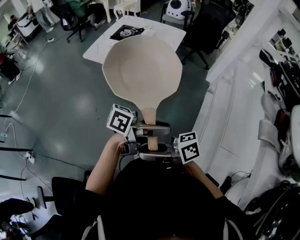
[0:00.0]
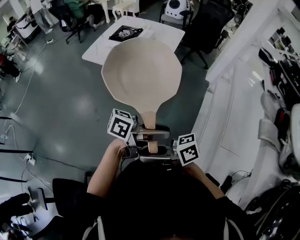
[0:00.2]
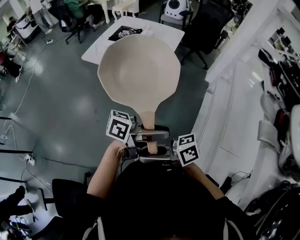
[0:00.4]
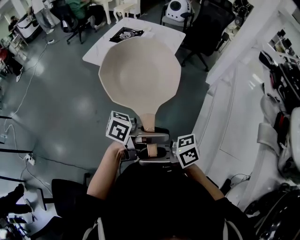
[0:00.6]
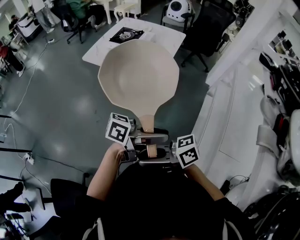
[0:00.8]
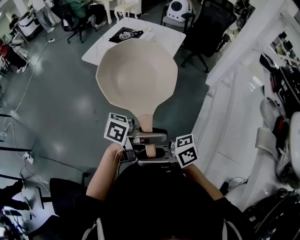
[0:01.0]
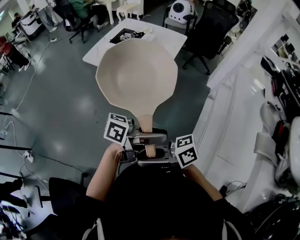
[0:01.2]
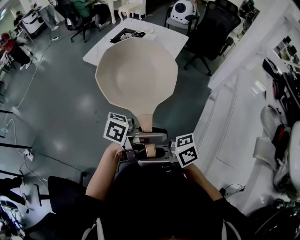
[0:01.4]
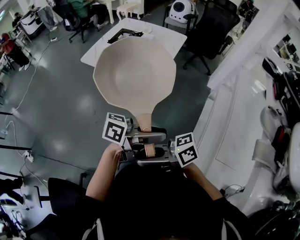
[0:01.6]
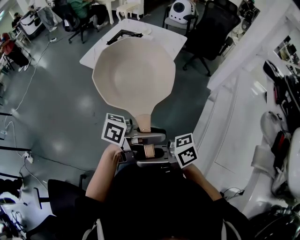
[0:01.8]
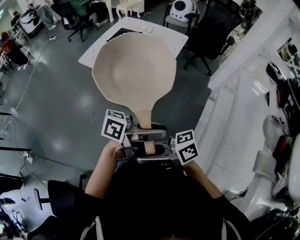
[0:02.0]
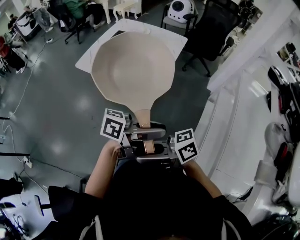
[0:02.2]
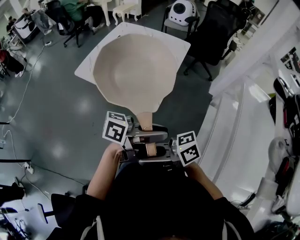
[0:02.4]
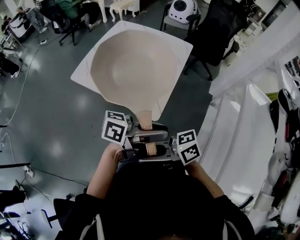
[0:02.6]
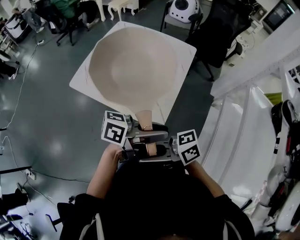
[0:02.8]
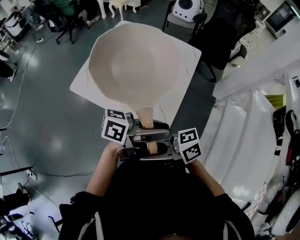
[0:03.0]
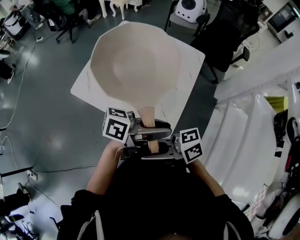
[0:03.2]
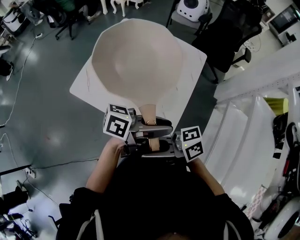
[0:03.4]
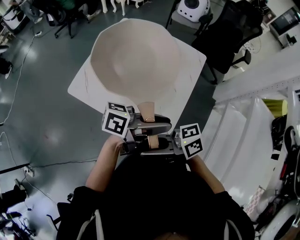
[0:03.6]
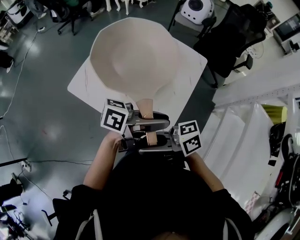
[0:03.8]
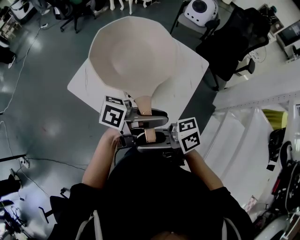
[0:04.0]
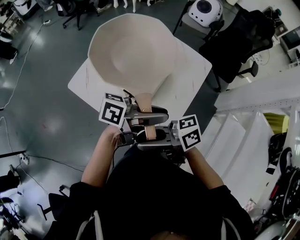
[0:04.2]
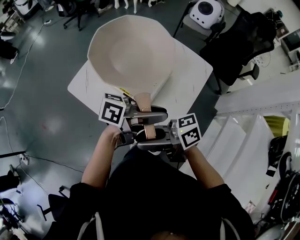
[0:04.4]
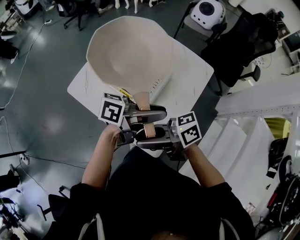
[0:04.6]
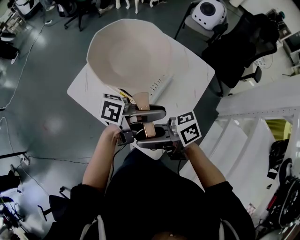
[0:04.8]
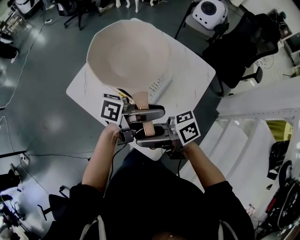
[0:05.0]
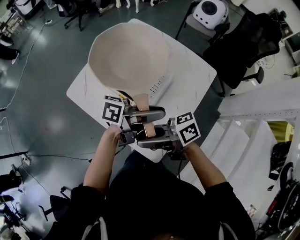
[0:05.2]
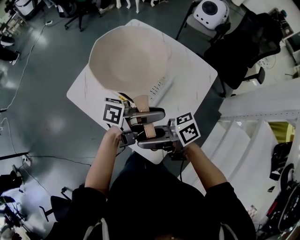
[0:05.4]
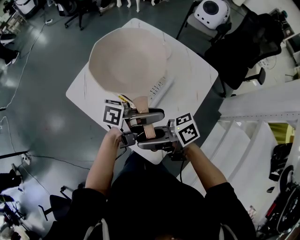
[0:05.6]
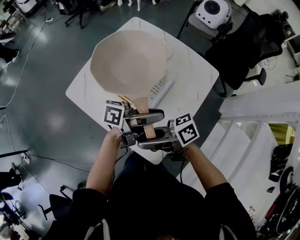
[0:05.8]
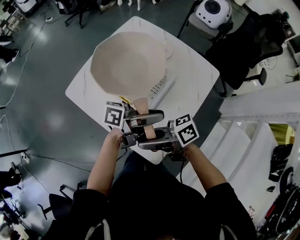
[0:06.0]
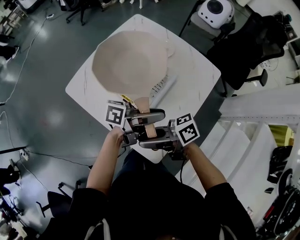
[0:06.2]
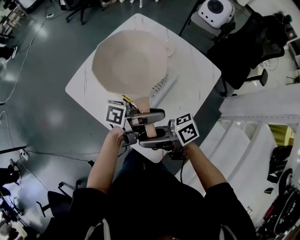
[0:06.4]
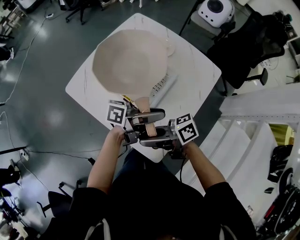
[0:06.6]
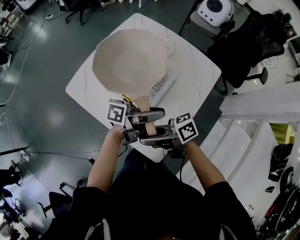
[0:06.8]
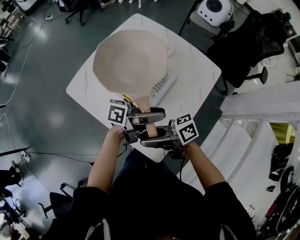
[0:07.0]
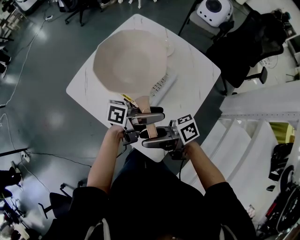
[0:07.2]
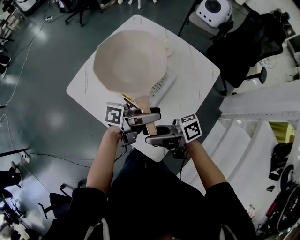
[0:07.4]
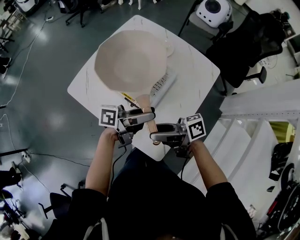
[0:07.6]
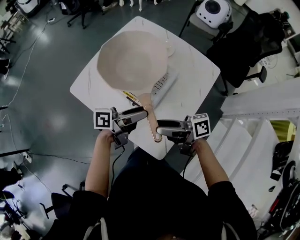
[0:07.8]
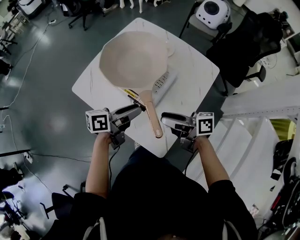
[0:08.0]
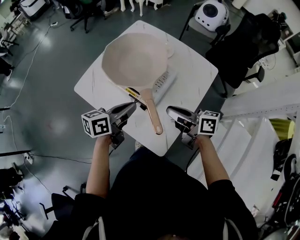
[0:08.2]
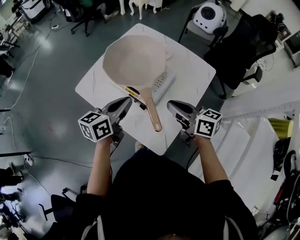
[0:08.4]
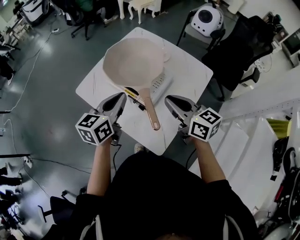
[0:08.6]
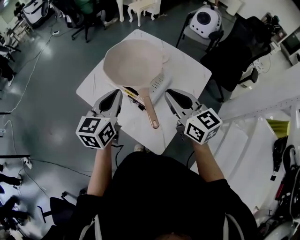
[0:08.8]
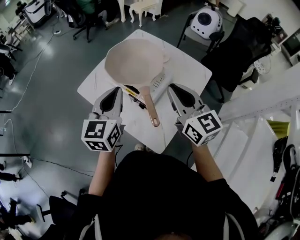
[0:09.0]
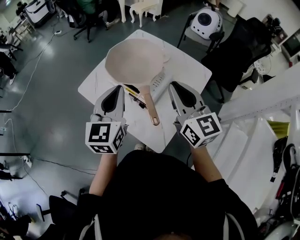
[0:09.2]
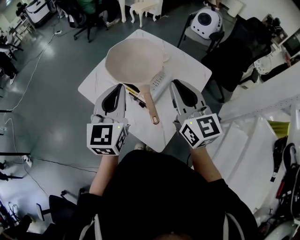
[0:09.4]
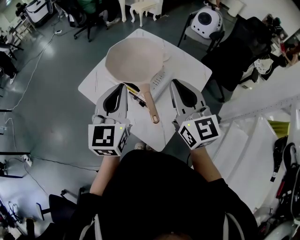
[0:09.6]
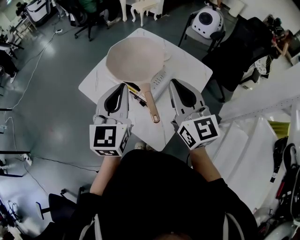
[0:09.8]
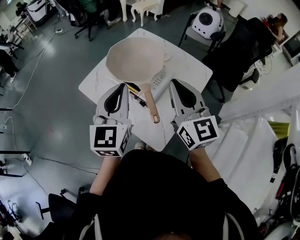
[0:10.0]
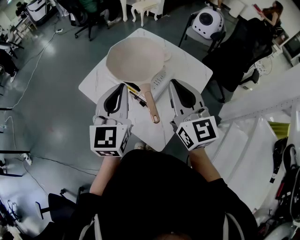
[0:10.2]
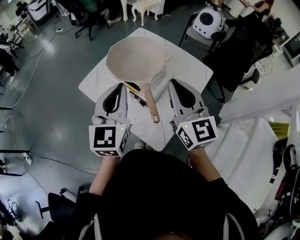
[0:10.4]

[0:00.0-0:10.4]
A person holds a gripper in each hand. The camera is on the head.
0:00.0 to 0:01.4: There are only small adjustments of the grippers.
0:01.4 to 0:03.0: The right gripper shifts by approximately 35 cm. The left gripper shifts by roughly 35 cm.
0:03.0 to 0:04.4: The left gripper moves some 15 cm; the right gripper changes place by about 15 cm.
0:04.4 to 0:06.0: The two grippers go about 5 cm downward.
0:06.0 to 0:07.4: The right gripper opens. The left gripper opens.
0:07.4 to 0:09.0: The left gripper moves some 20 cm, swivels some 90 degrees, and closes its fingers. Meanwhile the right gripper moves upward, approximately 15 cm, rotates about 90 degrees, and closes.
0:09.0 to 0:10.4: The grippers make only small movements.

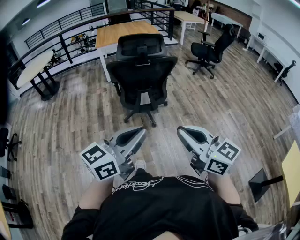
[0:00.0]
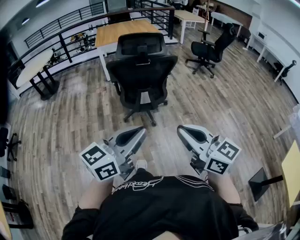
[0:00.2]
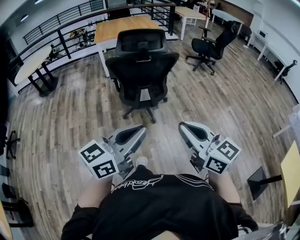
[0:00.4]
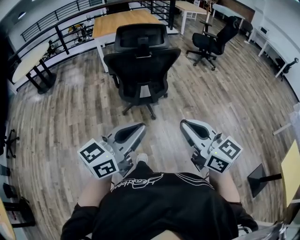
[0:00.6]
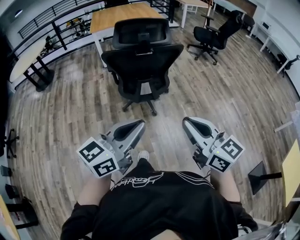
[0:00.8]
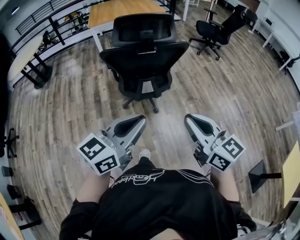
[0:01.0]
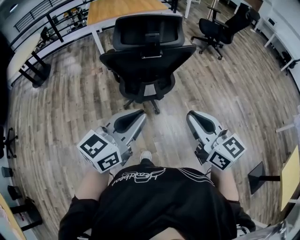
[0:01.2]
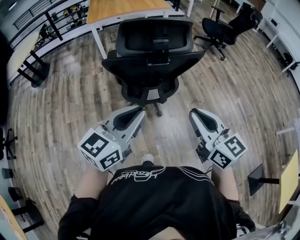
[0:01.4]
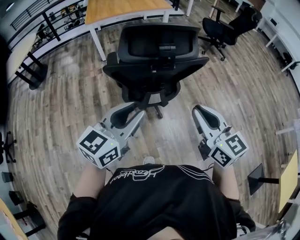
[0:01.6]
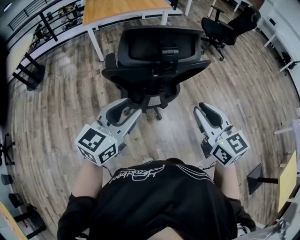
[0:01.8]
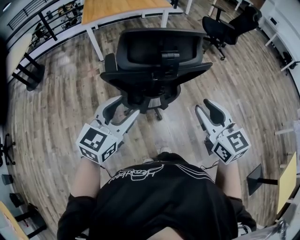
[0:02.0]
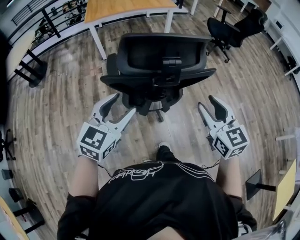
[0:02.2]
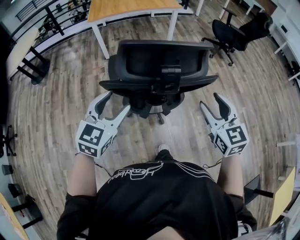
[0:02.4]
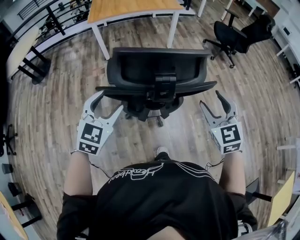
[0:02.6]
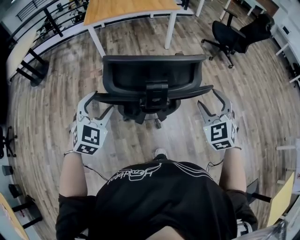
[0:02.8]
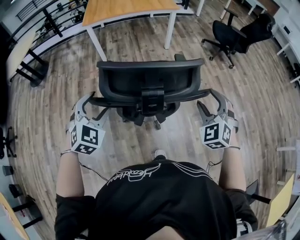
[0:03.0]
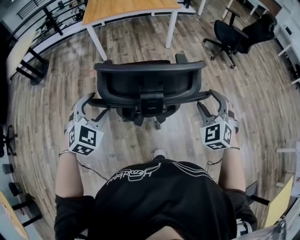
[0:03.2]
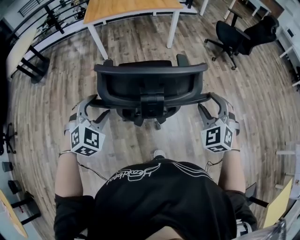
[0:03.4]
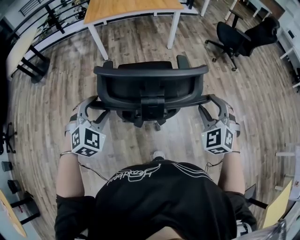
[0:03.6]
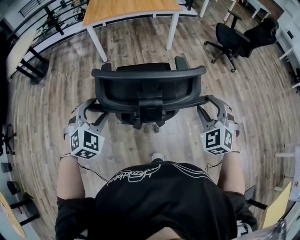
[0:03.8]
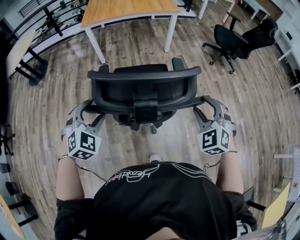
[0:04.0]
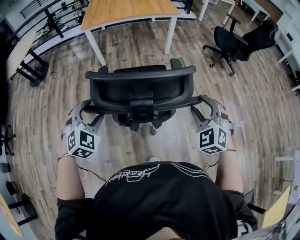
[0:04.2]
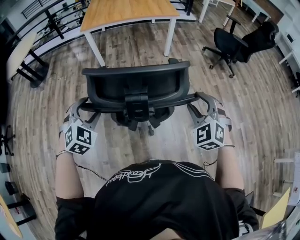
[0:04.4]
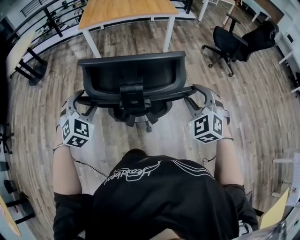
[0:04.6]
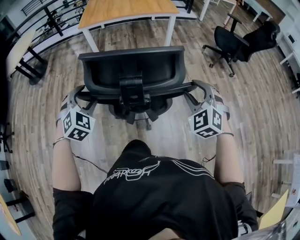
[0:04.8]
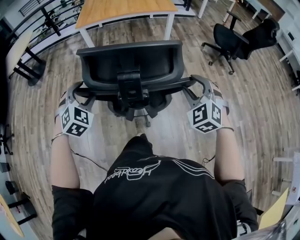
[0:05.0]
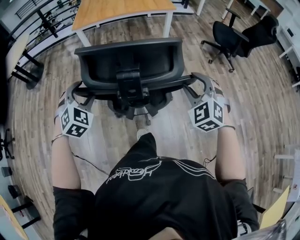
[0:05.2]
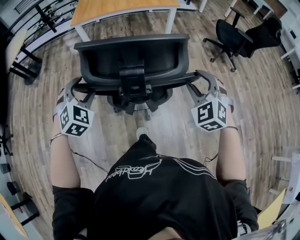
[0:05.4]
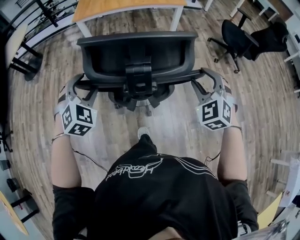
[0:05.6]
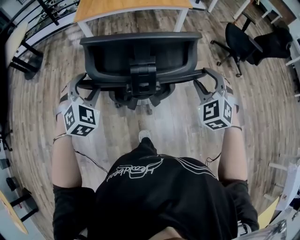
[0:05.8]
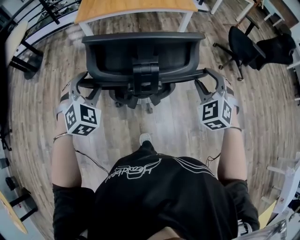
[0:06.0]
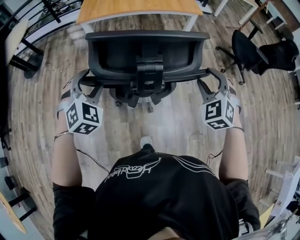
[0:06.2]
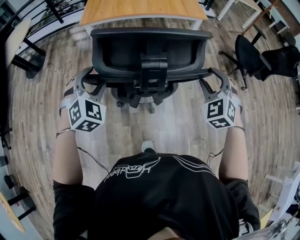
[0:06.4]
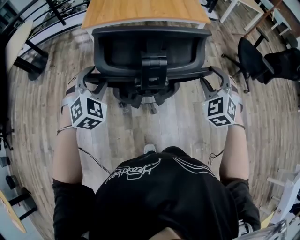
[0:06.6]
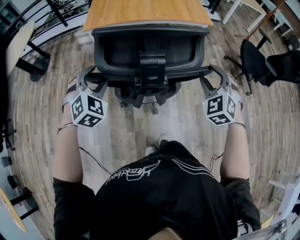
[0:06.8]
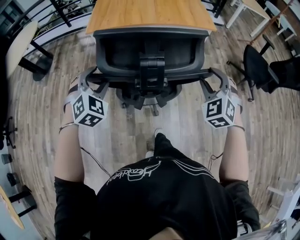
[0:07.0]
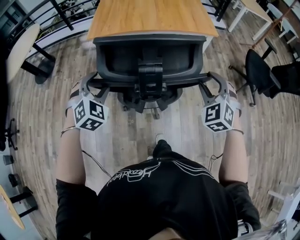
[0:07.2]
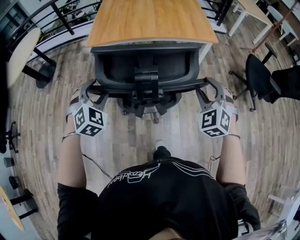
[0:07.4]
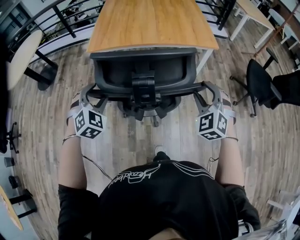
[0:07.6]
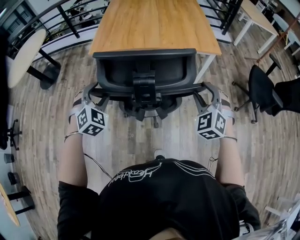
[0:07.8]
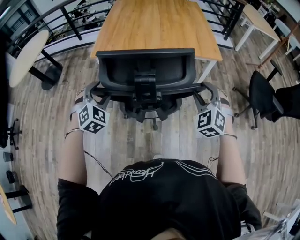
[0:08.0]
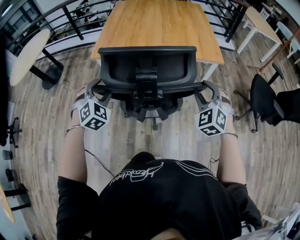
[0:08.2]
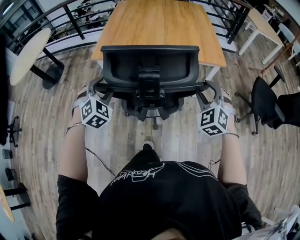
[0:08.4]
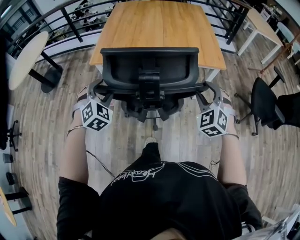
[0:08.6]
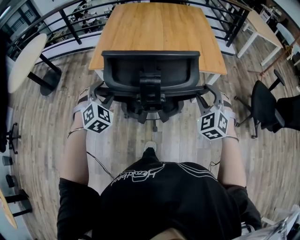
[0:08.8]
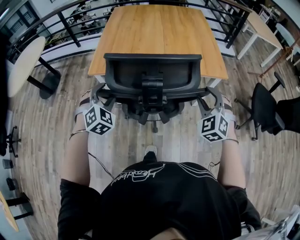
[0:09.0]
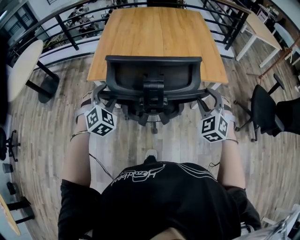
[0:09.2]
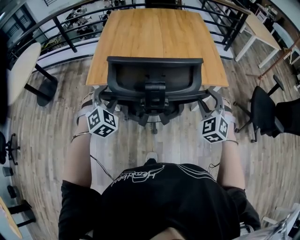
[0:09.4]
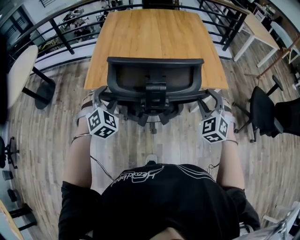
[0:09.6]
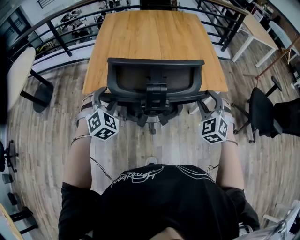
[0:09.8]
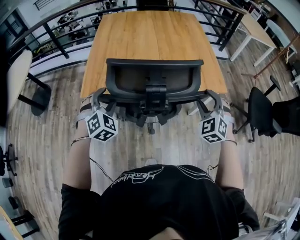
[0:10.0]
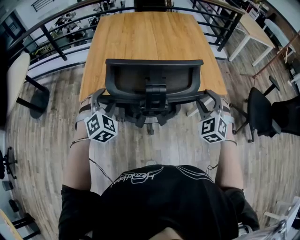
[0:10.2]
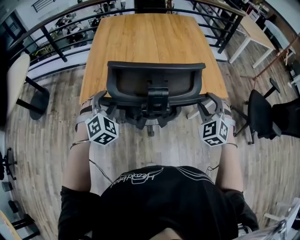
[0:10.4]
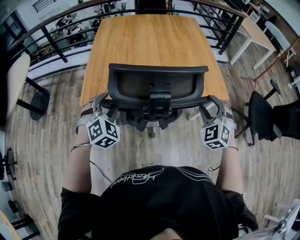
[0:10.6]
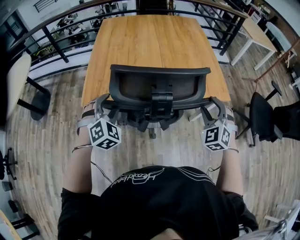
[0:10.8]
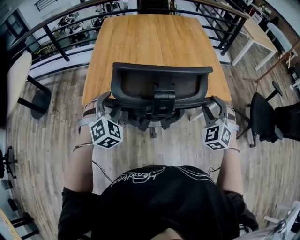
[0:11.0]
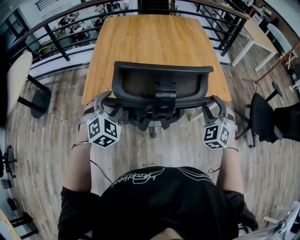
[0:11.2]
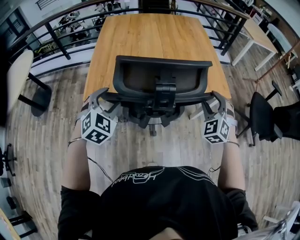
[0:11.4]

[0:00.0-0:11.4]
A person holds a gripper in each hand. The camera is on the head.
0:00.0 to 0:01.4: The two grippers go some 30 cm forward.
0:01.4 to 0:02.8: The right gripper moves forward, some 30 cm, rolls counterclockwise, seen from behind, by some 50 degrees, and opens its fingers. The left gripper moves forward and to the left, some 25 cm, changes its angle by about 50 degrees, and opens up.
0:02.8 to 0:04.2: The left gripper moves roughly 5 cm, while the right gripper travels forward by about 5 cm.
0:04.2 to 0:05.6: Both grippers move forward, approximately 20 cm.
0:05.6 to 0:07.2: Both grippers travel together forward, some 30 cm.
0:07.2 to 0:08.6: The grippers both shift forward by about 15 cm.
0:08.6 to 0:10.0: The grippers both shift forward by approximately 20 cm.
0:10.0 to 0:11.4: There are only small adjustments of the grippers.

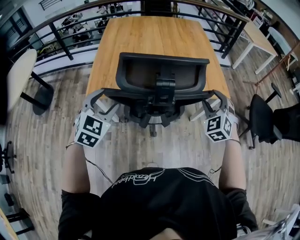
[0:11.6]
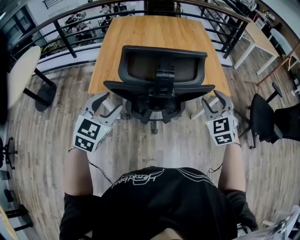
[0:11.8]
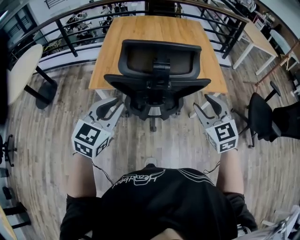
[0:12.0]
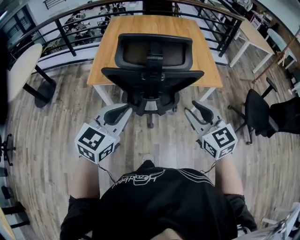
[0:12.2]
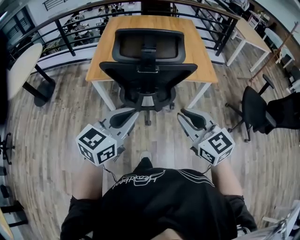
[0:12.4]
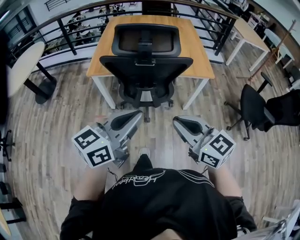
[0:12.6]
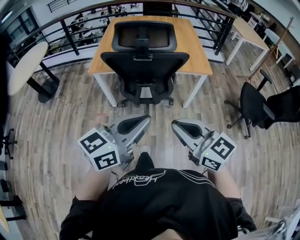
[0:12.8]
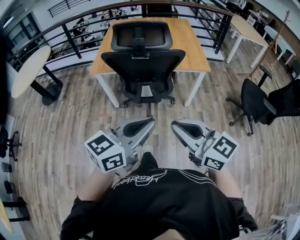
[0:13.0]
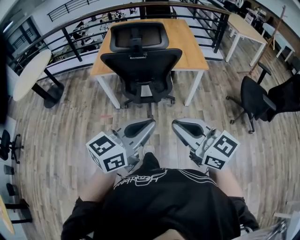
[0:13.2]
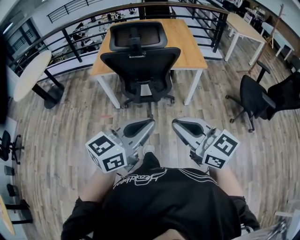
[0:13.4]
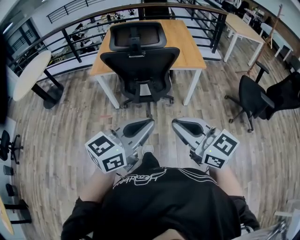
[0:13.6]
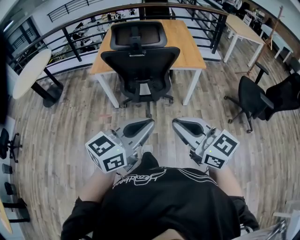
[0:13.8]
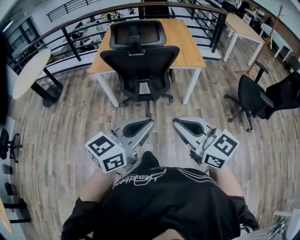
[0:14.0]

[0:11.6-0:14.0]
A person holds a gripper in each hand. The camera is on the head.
0:11.6 to 0:12.8: The left gripper heads backward and to the right, covering approximately 40 cm, swivels about 60 degrees, and closes up; the right gripper heads backward, covering approximately 40 cm, rotates some 70 degrees, and closes.
0:12.8 to 0:14.0: Both grippers move backward, some 10 cm.
